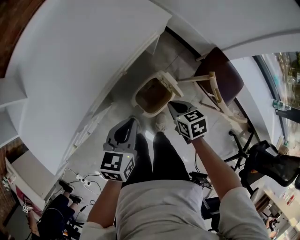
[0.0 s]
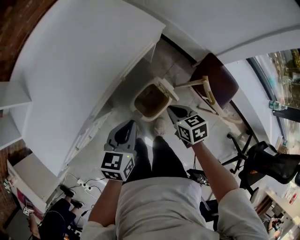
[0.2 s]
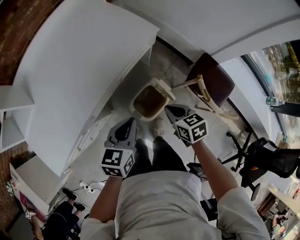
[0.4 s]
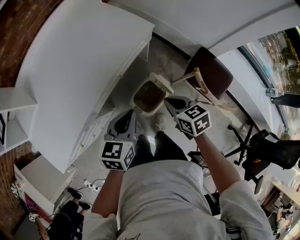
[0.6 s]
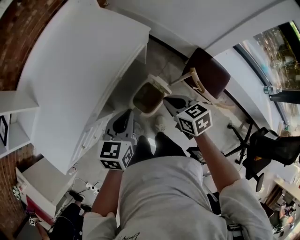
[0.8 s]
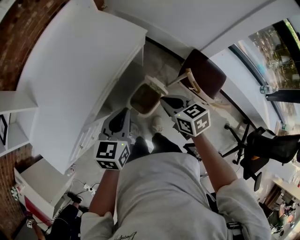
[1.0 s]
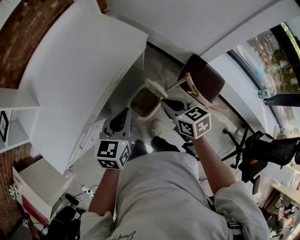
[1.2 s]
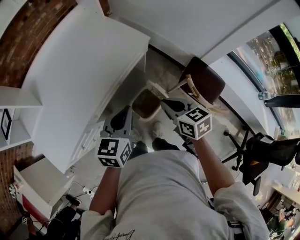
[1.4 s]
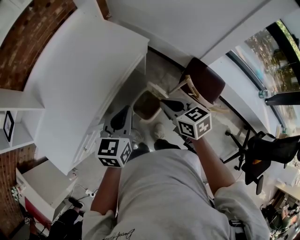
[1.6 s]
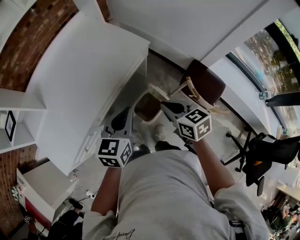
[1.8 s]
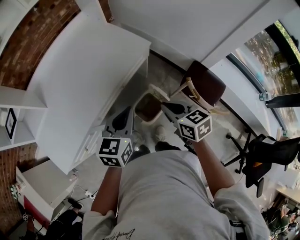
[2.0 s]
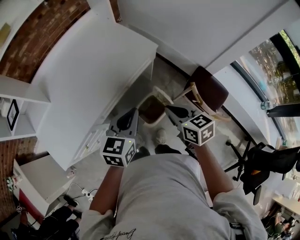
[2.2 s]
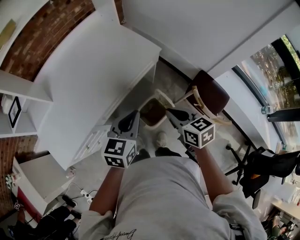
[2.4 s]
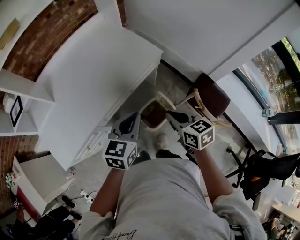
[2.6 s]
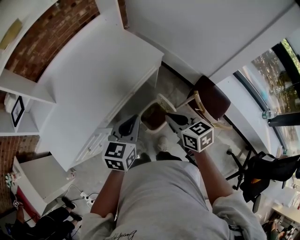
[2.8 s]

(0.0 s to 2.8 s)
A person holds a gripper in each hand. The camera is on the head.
0.0 s - 1.4 s: Both grippers move upward, some 20 cm.
1.4 s - 2.8 s: The grippers move only a little.

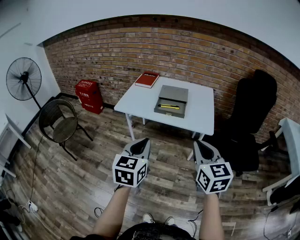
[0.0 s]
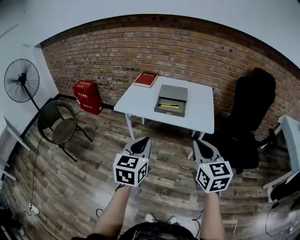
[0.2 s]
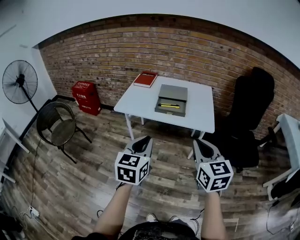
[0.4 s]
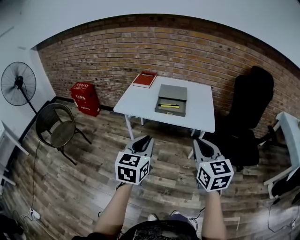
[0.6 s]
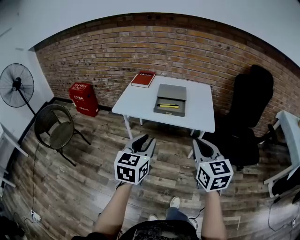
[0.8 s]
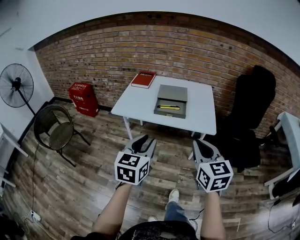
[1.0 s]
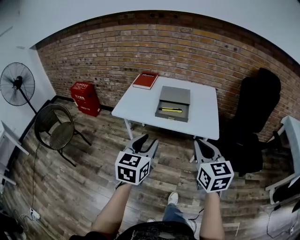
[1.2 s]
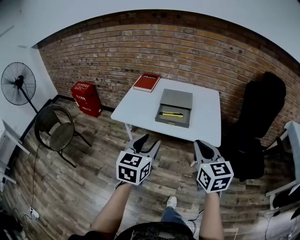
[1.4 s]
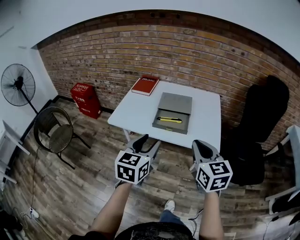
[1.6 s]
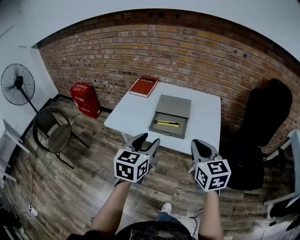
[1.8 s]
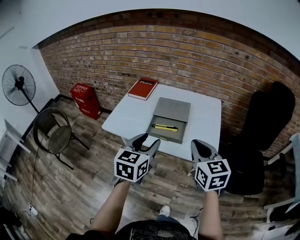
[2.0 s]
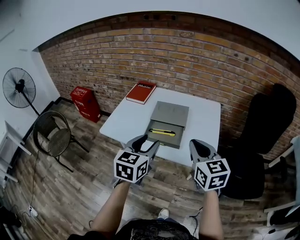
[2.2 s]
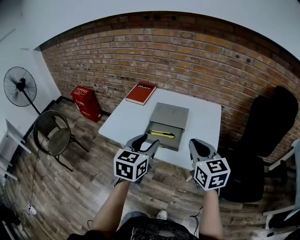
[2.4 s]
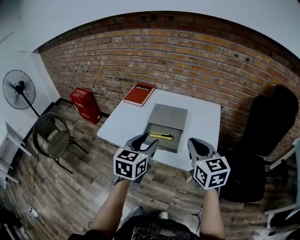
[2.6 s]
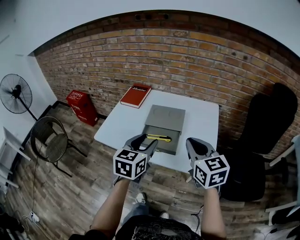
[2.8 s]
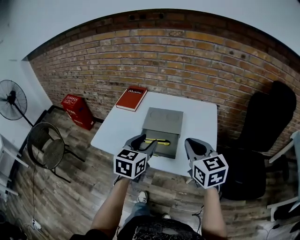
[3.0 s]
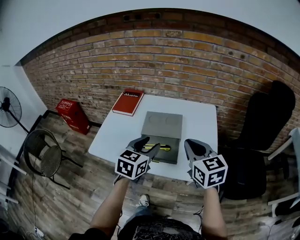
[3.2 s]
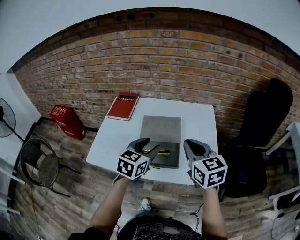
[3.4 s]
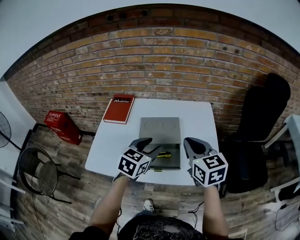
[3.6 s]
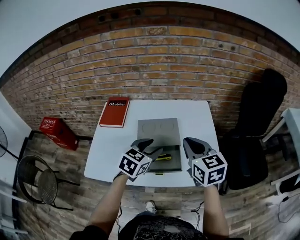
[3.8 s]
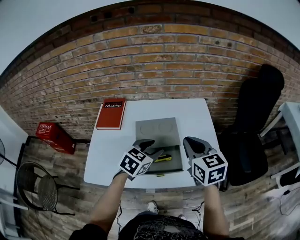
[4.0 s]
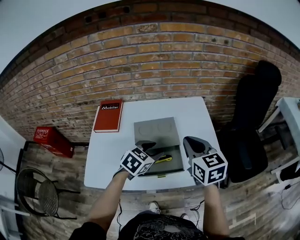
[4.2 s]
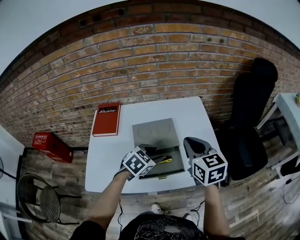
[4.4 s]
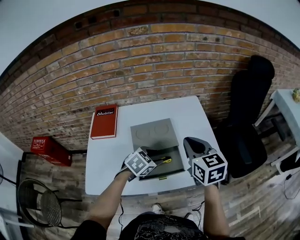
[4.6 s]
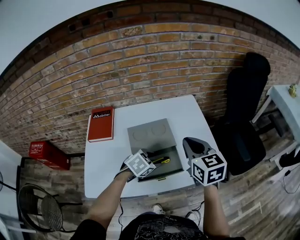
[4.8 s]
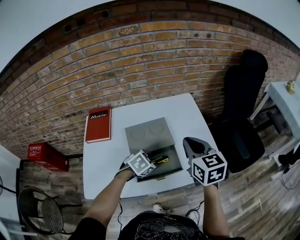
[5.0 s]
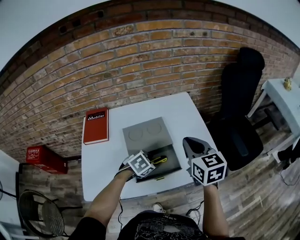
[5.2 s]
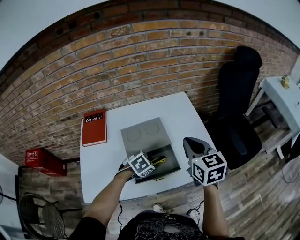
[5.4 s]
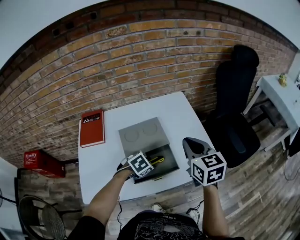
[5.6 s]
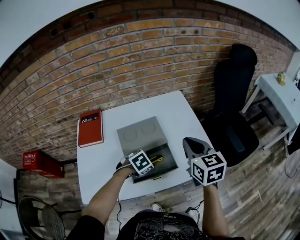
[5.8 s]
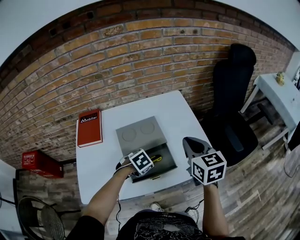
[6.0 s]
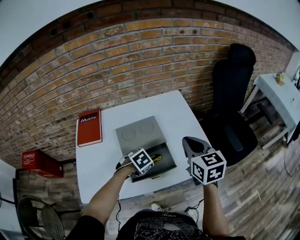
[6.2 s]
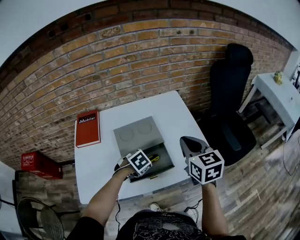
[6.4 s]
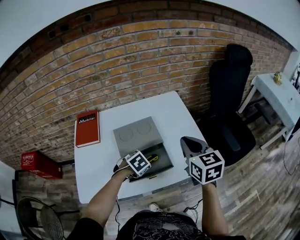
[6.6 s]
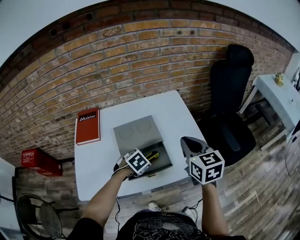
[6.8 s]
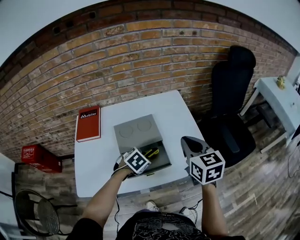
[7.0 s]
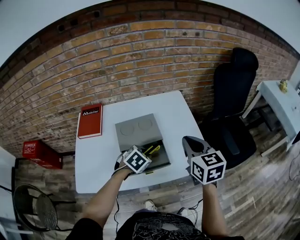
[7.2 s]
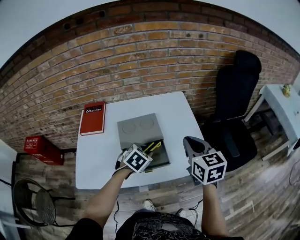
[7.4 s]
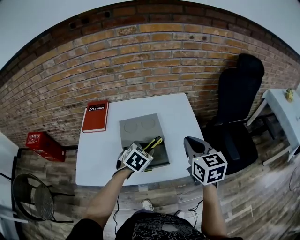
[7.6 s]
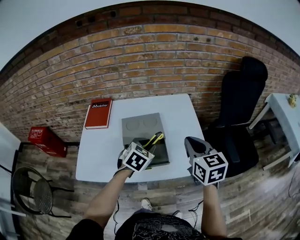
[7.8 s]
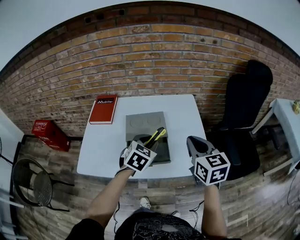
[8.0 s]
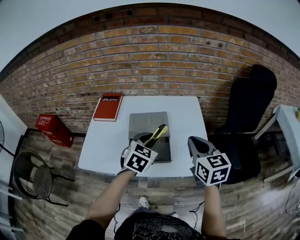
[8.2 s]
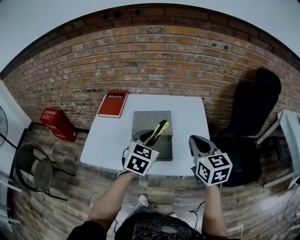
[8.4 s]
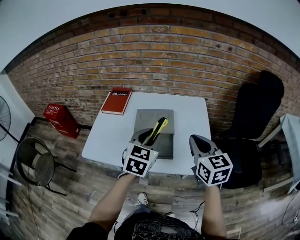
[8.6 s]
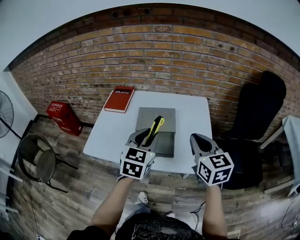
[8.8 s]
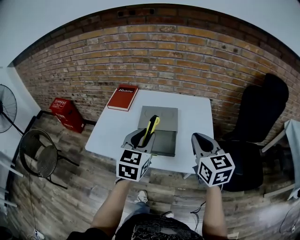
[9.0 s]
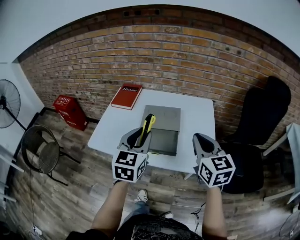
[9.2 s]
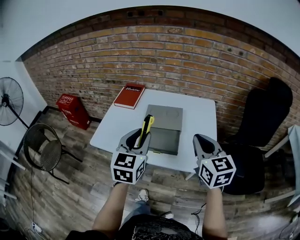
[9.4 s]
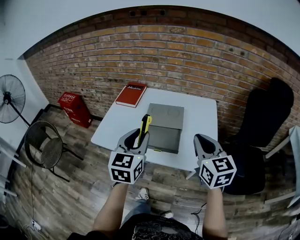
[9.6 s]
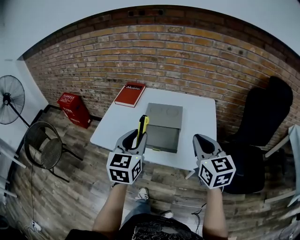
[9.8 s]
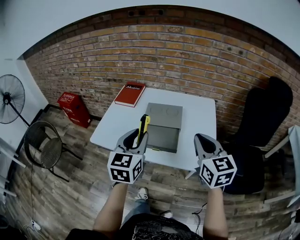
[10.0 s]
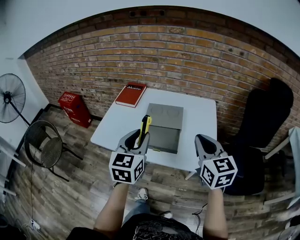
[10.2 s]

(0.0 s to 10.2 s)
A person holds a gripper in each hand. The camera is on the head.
0.0 s - 1.4 s: Both grippers travel together forward, roughly 15 cm. The left gripper opens up.
1.4 s - 3.0 s: Both grippers travel together forward, approximately 20 cm.
3.0 s - 4.4 s: The left gripper is displaced downward by about 15 cm, and changes its angle by about 50 degrees. The right gripper moves some 10 cm, and swivels approximately 20 degrees.
4.4 s - 5.8 s: The right gripper changes place by about 5 cm, while the left gripper shifts some 10 cm downward, and turns by some 30 degrees.
5.8 s - 7.2 s: The left gripper heads upward, covering about 5 cm, and turns by approximately 20 degrees.
7.2 s - 8.8 s: The right gripper changes place by approximately 5 cm. The left gripper is displaced upward by approximately 20 cm, and tilts its fingers roughly 40 degrees upward.
8.8 s - 10.2 s: The left gripper shifts about 10 cm to the left and backward.

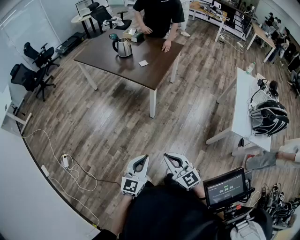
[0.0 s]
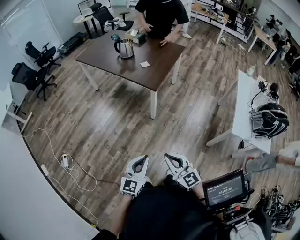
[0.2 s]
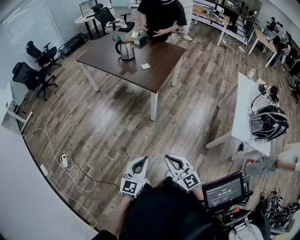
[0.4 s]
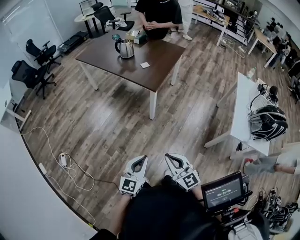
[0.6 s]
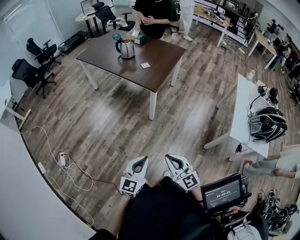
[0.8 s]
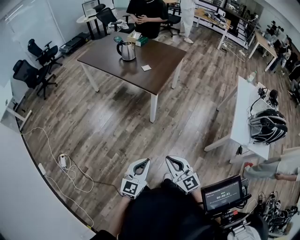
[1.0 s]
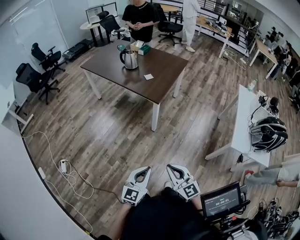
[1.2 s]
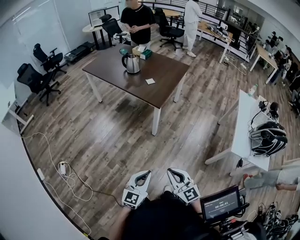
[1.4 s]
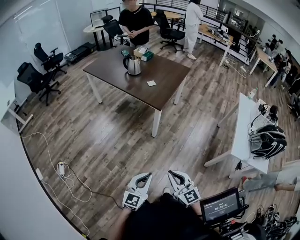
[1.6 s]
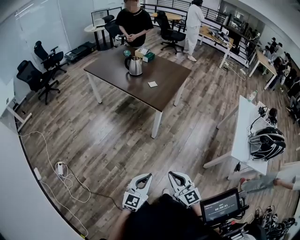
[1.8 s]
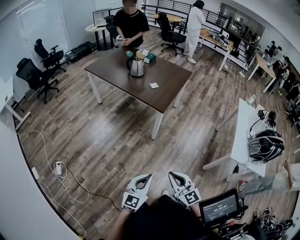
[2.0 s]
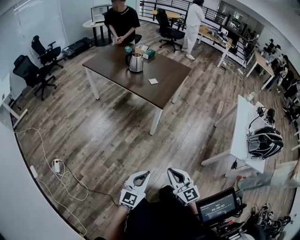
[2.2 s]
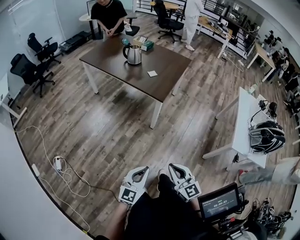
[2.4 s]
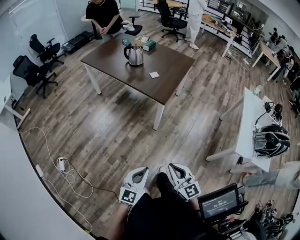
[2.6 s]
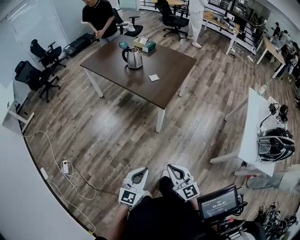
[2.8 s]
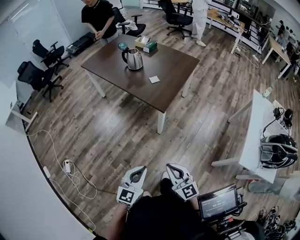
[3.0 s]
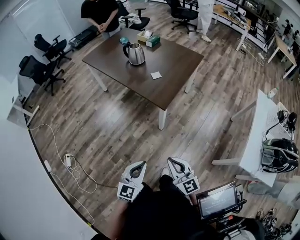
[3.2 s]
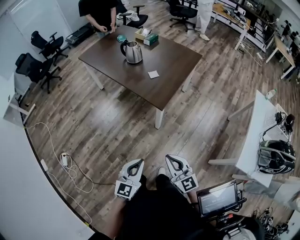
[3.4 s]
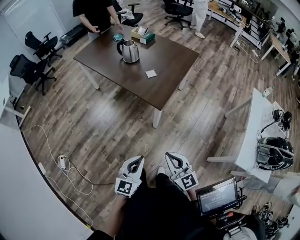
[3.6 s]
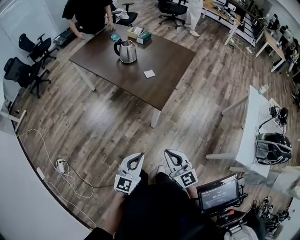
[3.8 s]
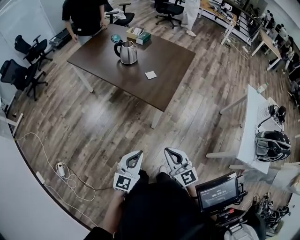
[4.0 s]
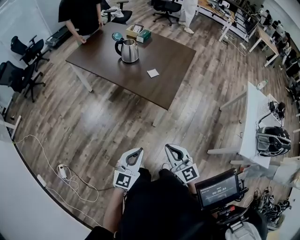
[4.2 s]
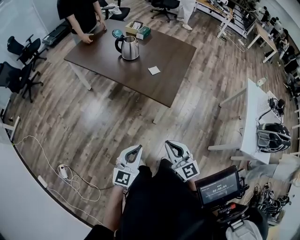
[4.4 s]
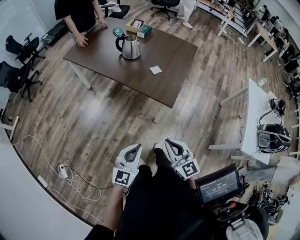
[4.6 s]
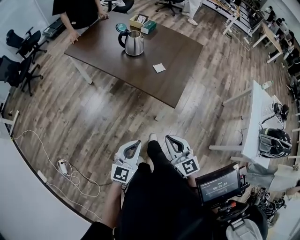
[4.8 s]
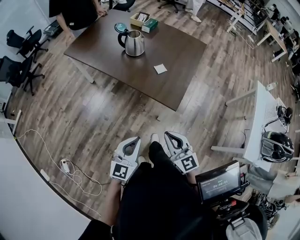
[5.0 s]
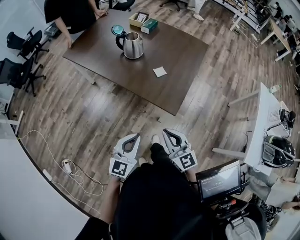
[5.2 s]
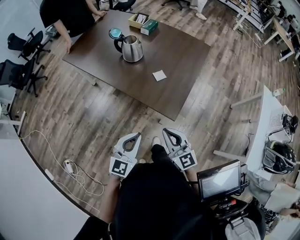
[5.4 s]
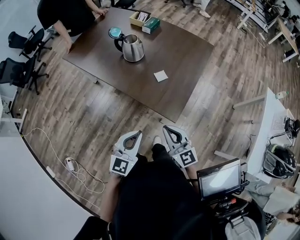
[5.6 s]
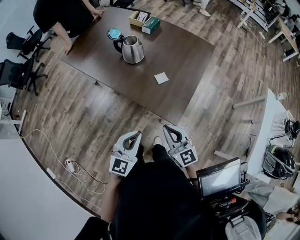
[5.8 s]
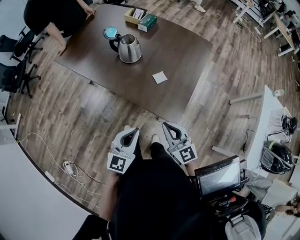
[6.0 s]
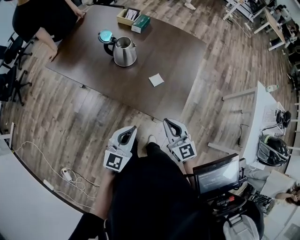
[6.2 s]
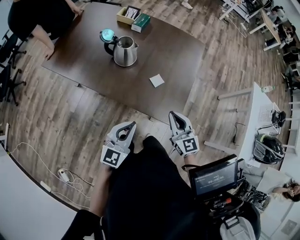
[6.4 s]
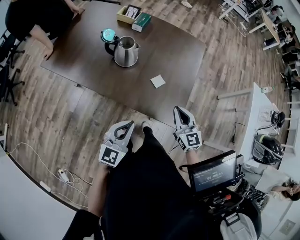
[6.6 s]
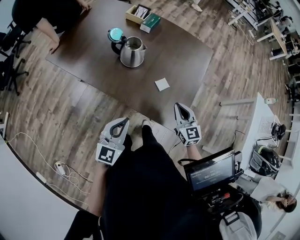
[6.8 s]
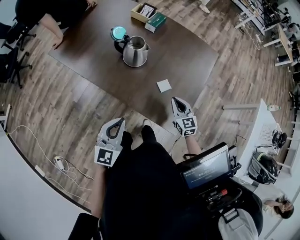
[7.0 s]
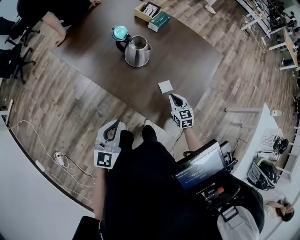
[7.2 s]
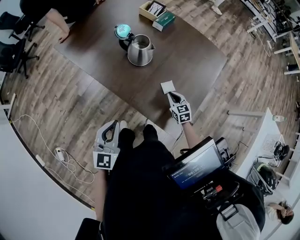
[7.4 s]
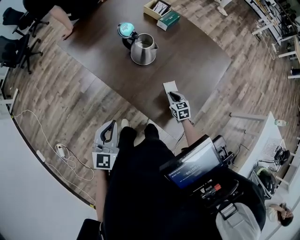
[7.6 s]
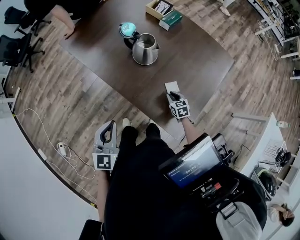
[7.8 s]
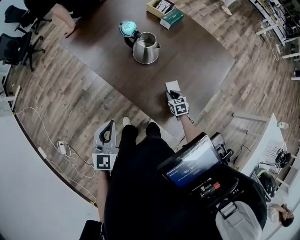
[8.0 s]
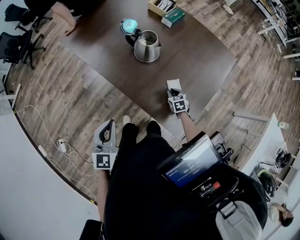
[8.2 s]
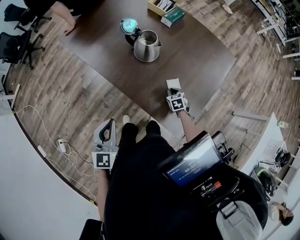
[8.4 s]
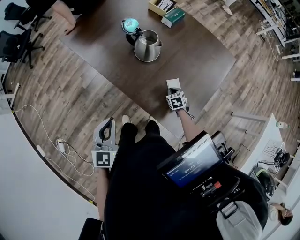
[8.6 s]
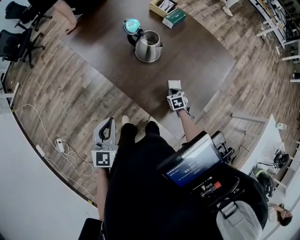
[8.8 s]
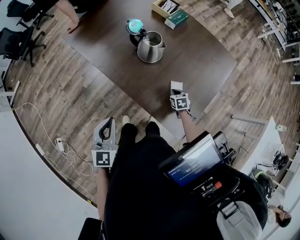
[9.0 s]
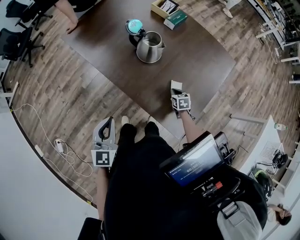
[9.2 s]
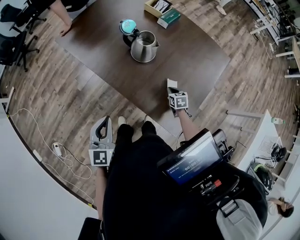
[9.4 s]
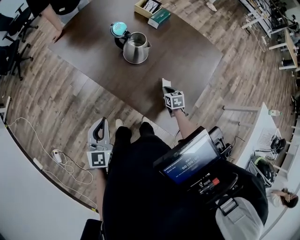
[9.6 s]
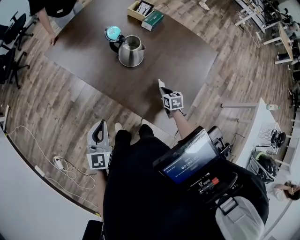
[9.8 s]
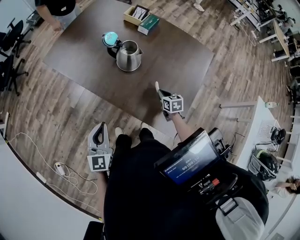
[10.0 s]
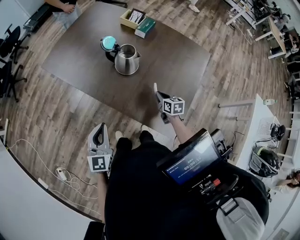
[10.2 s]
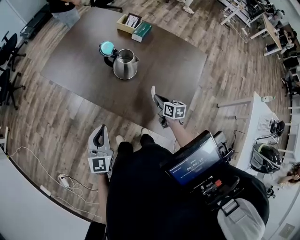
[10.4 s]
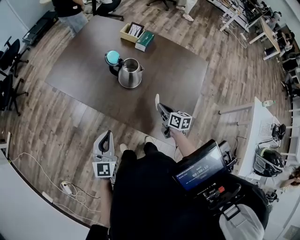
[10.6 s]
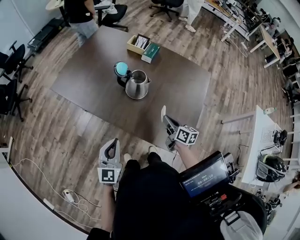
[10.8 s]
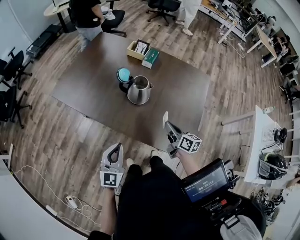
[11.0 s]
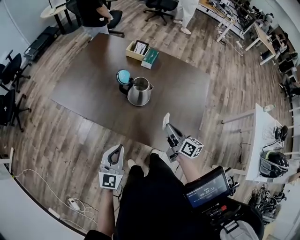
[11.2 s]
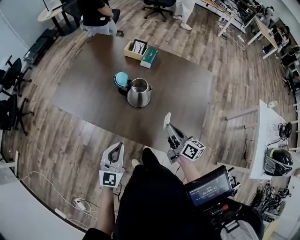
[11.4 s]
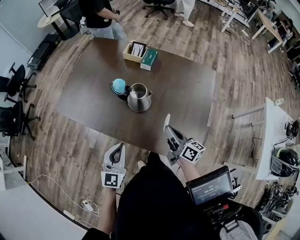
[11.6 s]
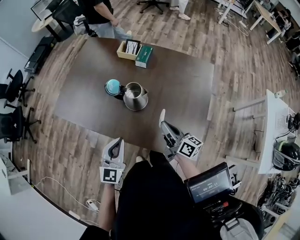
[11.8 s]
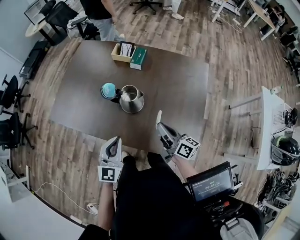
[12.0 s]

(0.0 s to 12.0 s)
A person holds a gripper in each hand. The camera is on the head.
0.0 s - 1.6 s: There are only small adjustments of the grippers.
1.6 s - 3.0 s: The grippers both shift forward by approximately 15 cm.
3.0 s - 4.4 s: Both grippers travel together forward and to the left, roughly 20 cm.
4.4 s - 6.0 s: The two grippers go roughly 30 cm forward.
6.0 s - 7.6 s: The left gripper shifts by some 15 cm, and rotates some 20 degrees. The right gripper changes place by some 35 cm, and tips its fingers downward by about 30 degrees.
7.6 s - 9.0 s: The grippers stay close to where they were, moving slightly.
9.0 s - 10.4 s: The right gripper moves upward, roughly 15 cm, and rotates about 40 degrees; the left gripper moves forward, roughly 5 cm.
10.4 s - 12.0 s: The left gripper shifts some 15 cm forward, and swivels approximately 20 degrees; the right gripper shifts approximately 15 cm upward, and tips its fingers upward by approximately 30 degrees.
